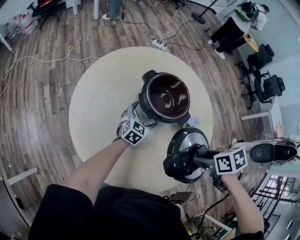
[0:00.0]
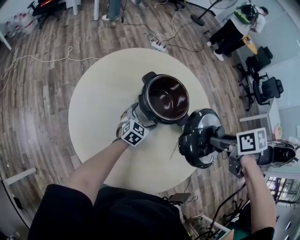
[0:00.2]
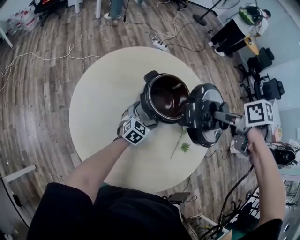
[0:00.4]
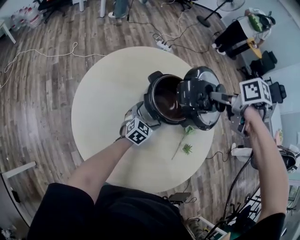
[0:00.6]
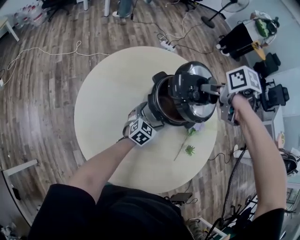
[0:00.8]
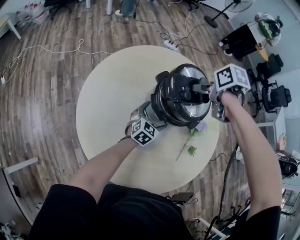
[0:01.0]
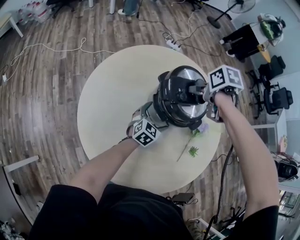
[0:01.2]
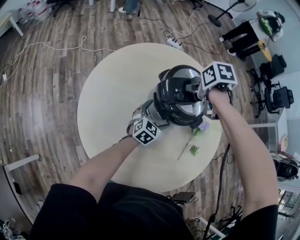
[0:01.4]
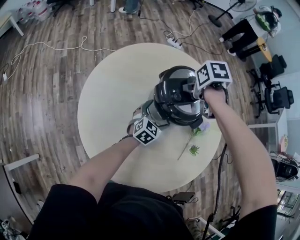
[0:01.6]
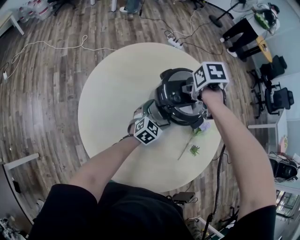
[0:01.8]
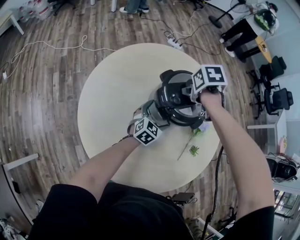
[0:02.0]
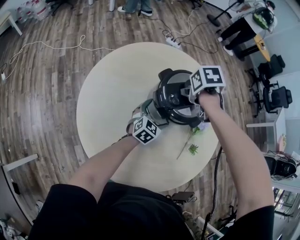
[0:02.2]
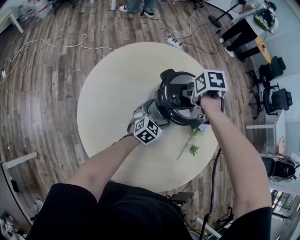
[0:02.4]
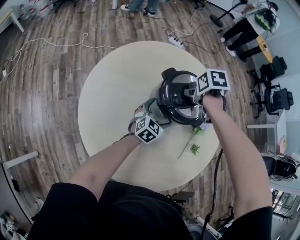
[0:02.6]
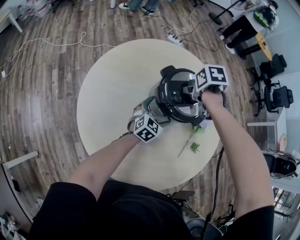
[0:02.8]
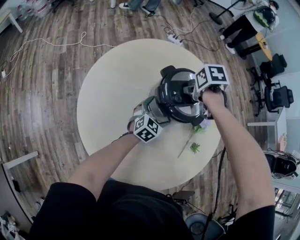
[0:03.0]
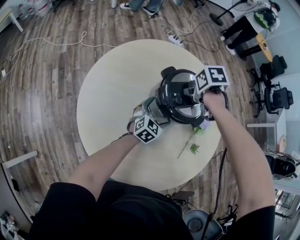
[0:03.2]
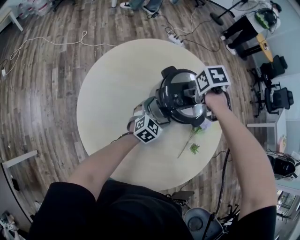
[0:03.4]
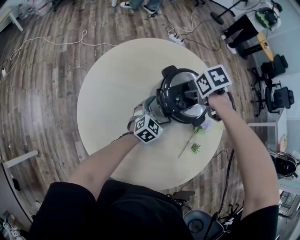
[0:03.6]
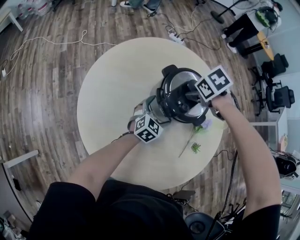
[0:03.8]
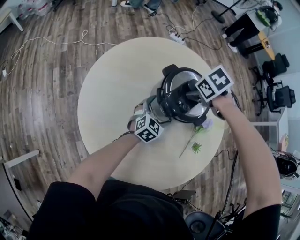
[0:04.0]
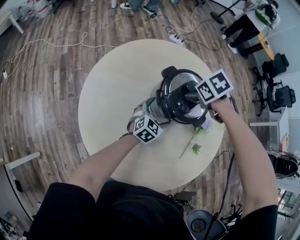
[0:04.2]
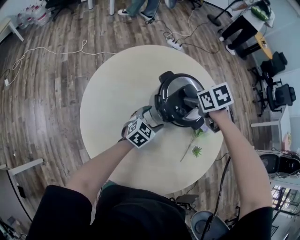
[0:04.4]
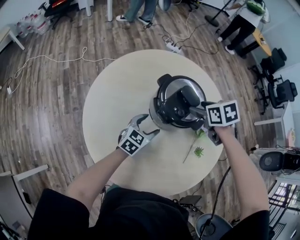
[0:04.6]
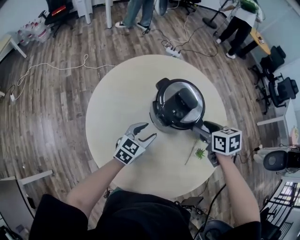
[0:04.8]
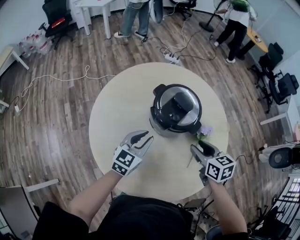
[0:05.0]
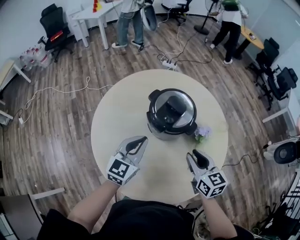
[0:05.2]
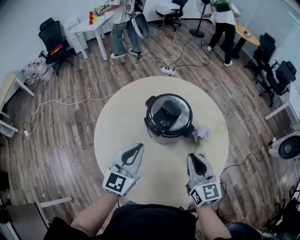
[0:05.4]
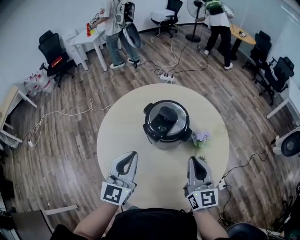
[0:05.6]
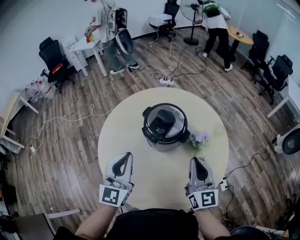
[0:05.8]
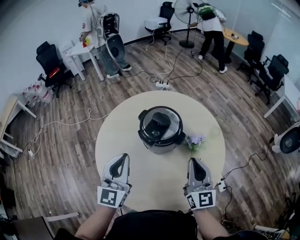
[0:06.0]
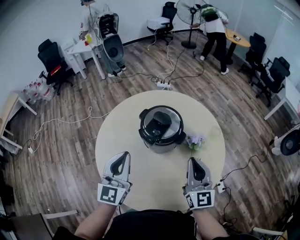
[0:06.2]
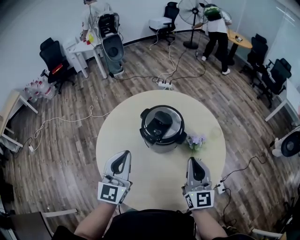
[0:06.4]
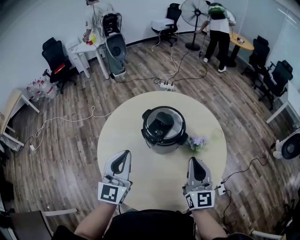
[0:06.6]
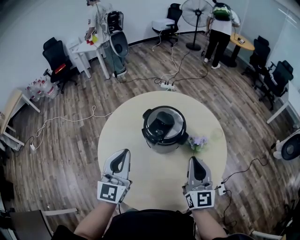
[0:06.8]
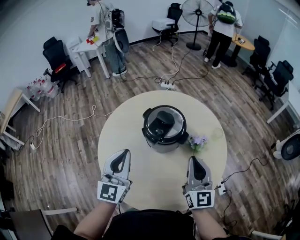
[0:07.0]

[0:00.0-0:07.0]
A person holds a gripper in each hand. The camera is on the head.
0:00.0 to 0:01.4: The right gripper reaches roughly 10 cm upward, then returns.
0:01.4 to 0:02.8: The grippers make only small movements.
0:02.8 to 0:04.2: The right gripper rotates approximately 30 degrees.
0:04.2 to 0:05.6: The left gripper travels upward by some 30 cm, rotates roughly 30 degrees, and closes up, while the right gripper ends up approximately 30 cm from where it was, angles its fingers upward, by some 80 degrees, and closes up.
0:05.6 to 0:07.0: There are only small adjustments of the grippers.

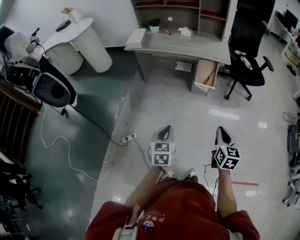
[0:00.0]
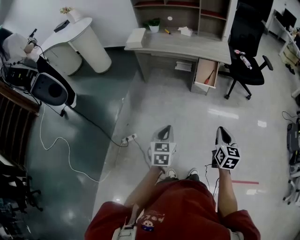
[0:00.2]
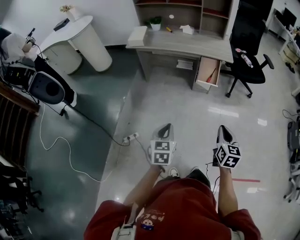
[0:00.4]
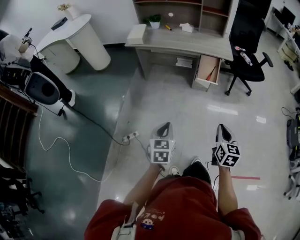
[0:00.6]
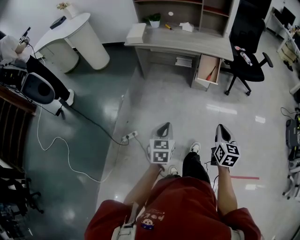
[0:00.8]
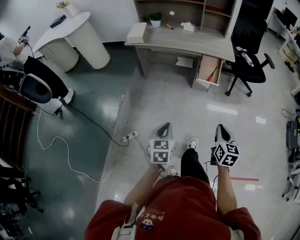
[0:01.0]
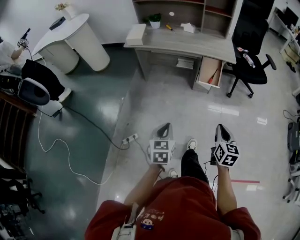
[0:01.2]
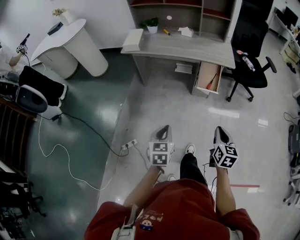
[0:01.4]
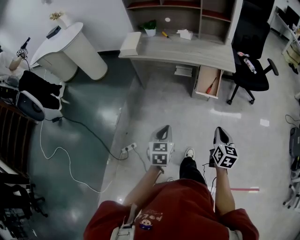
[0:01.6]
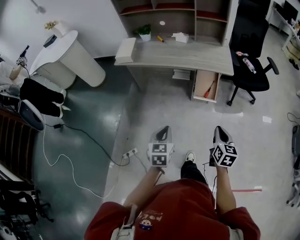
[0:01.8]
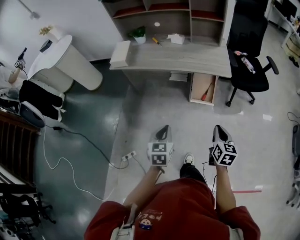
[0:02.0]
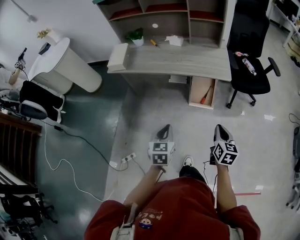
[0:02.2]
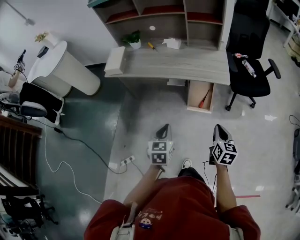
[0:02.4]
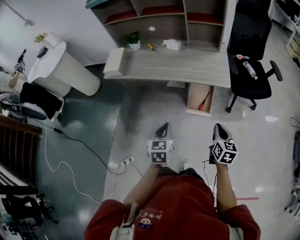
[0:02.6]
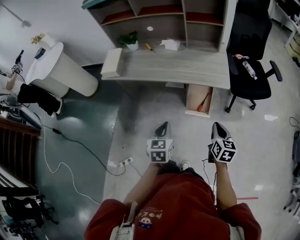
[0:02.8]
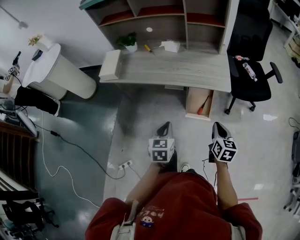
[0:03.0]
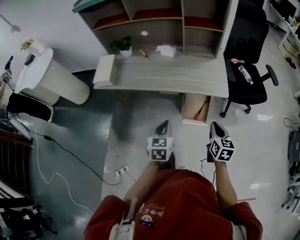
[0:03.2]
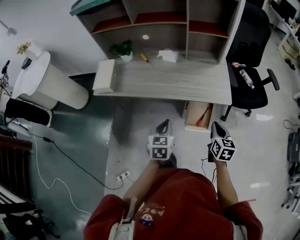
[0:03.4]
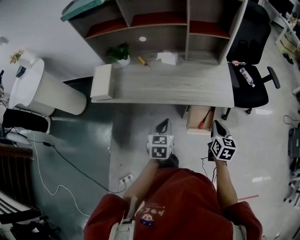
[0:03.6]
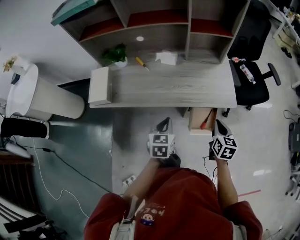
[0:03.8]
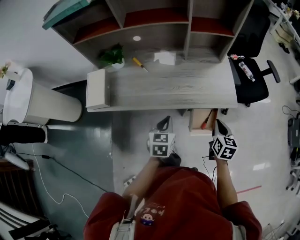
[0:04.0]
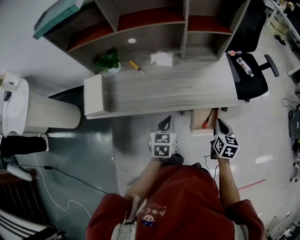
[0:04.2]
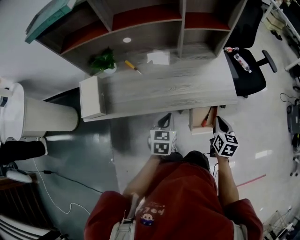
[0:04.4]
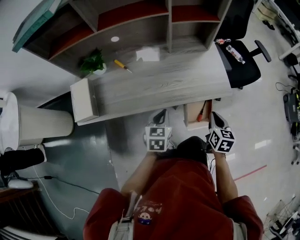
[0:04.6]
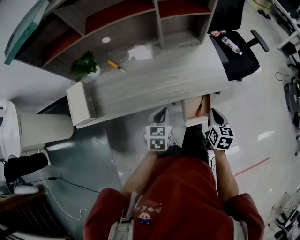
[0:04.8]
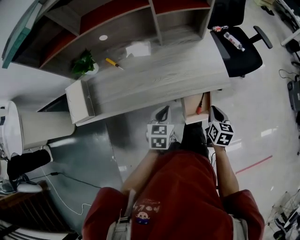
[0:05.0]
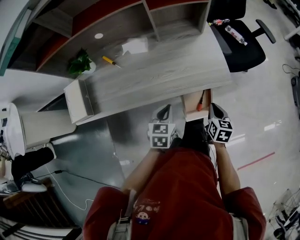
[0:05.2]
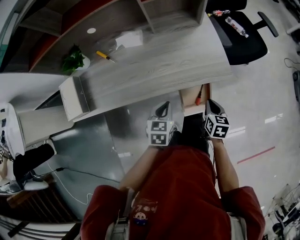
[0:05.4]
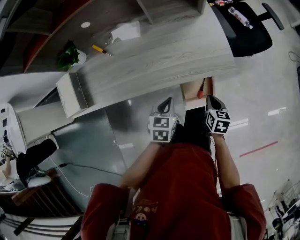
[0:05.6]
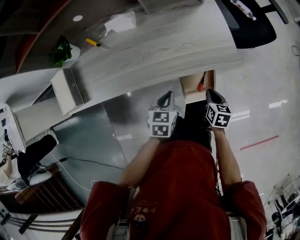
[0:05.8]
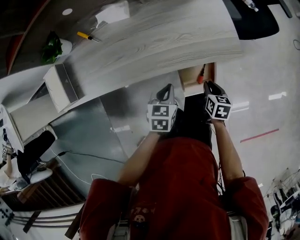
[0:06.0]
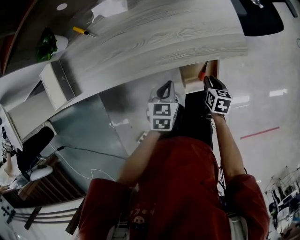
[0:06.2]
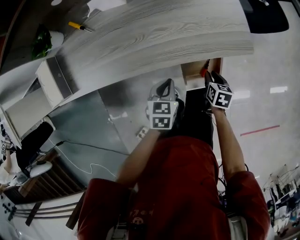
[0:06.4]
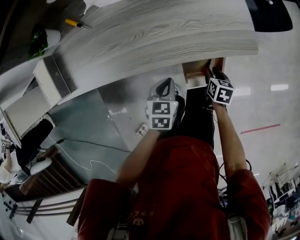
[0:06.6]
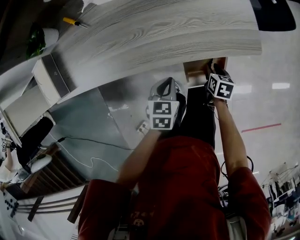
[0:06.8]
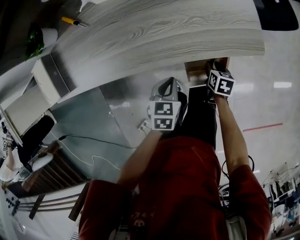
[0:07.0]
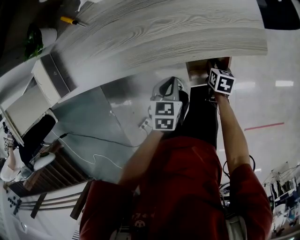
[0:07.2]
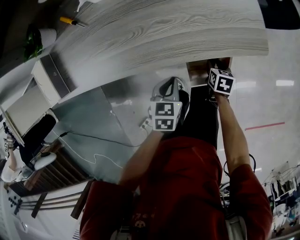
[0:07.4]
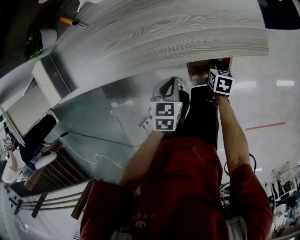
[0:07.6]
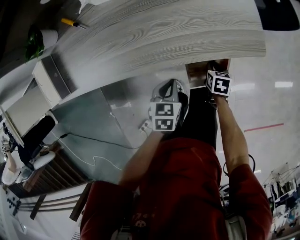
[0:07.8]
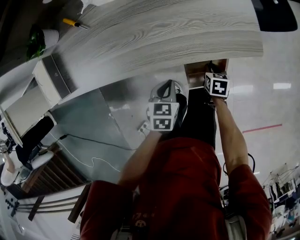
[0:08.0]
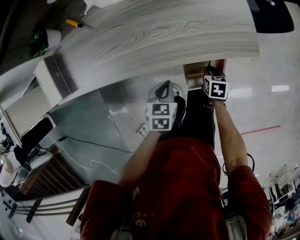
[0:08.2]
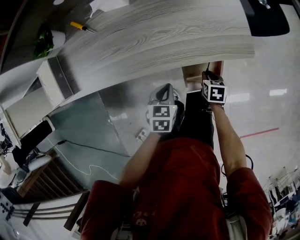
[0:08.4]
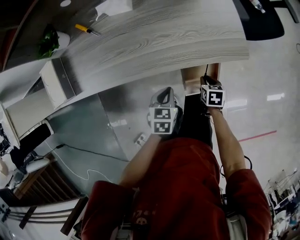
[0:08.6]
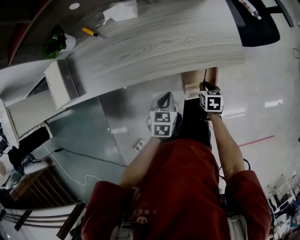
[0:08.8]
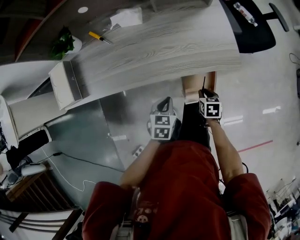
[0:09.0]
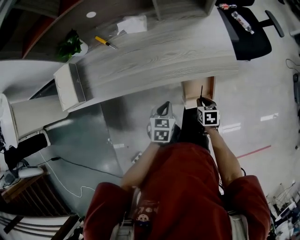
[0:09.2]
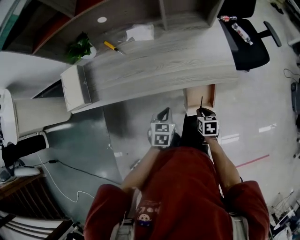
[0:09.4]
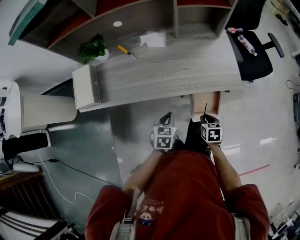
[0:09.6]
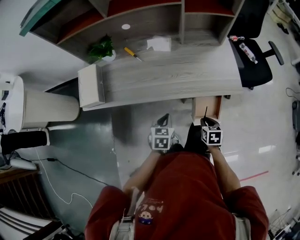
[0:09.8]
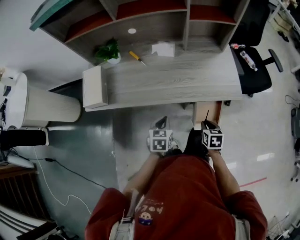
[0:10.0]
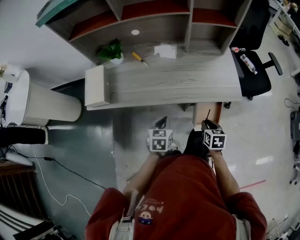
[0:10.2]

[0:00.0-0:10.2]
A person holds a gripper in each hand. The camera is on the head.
0:00.0 to 0:01.4: The right gripper goes approximately 10 cm forward. Meanwhile the left gripper shifts roughly 10 cm forward and to the left.
0:01.4 to 0:03.0: The grippers both shift forward by roughly 35 cm.
0:03.0 to 0:04.4: The right gripper moves forward and to the left, approximately 20 cm, while the left gripper travels forward by some 25 cm.
0:04.4 to 0:05.8: The right gripper is displaced downward by approximately 20 cm. Meanwhile the left gripper moves downward and to the right, about 20 cm.
0:05.8 to 0:07.2: The left gripper travels downward by roughly 10 cm, while the right gripper moves downward, approximately 15 cm, and opens.
0:07.2 to 0:08.8: The left gripper travels upward by approximately 5 cm; the right gripper is displaced upward by approximately 10 cm.
0:08.8 to 0:10.2: The left gripper is displaced to the left and upward by approximately 15 cm; the right gripper moves upward and to the left, about 20 cm.

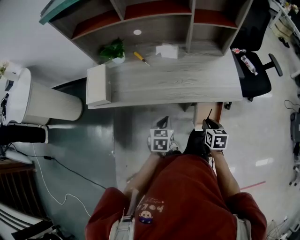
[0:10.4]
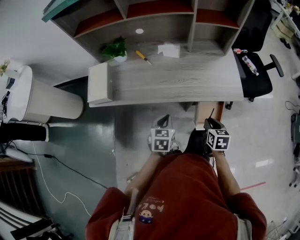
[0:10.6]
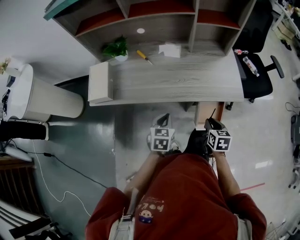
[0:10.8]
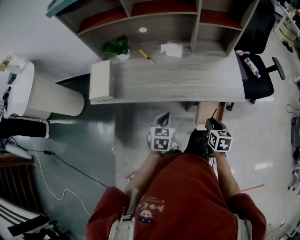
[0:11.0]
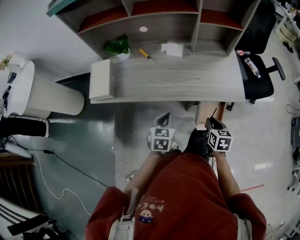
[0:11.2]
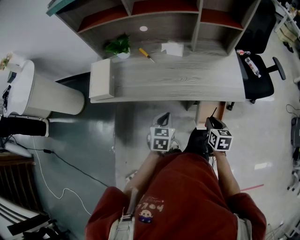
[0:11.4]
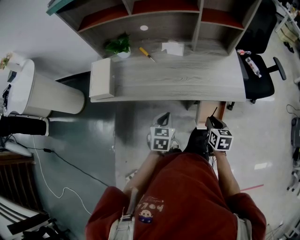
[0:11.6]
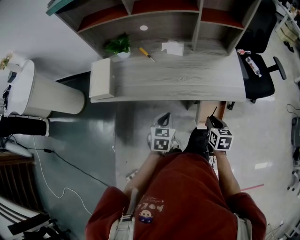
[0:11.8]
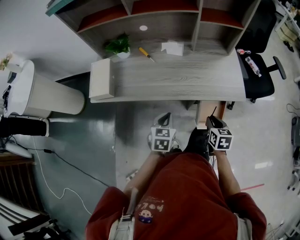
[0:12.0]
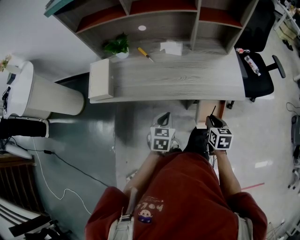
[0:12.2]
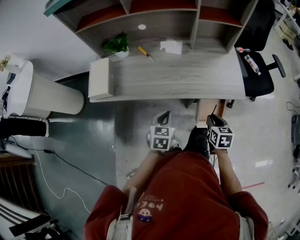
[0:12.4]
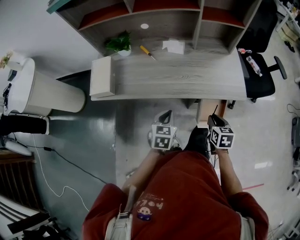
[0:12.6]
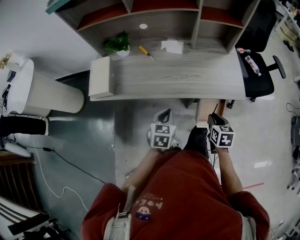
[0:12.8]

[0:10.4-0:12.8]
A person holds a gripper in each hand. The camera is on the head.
0:10.4 to 0:11.6: There are only small adjustments of the grippers.
0:11.6 to 0:12.8: Both grippers stay put.

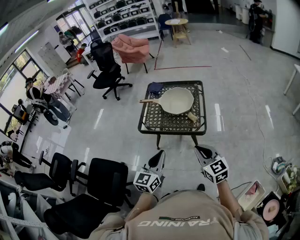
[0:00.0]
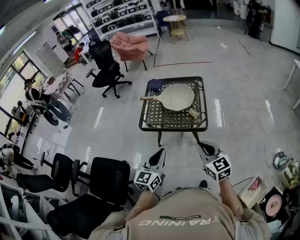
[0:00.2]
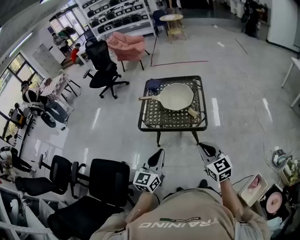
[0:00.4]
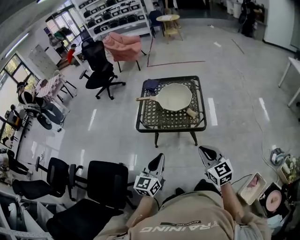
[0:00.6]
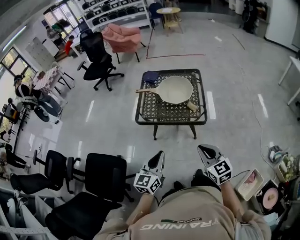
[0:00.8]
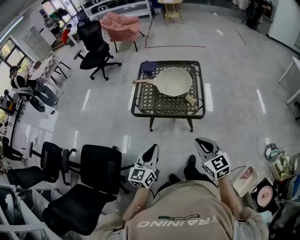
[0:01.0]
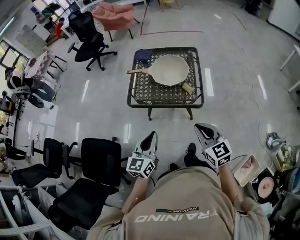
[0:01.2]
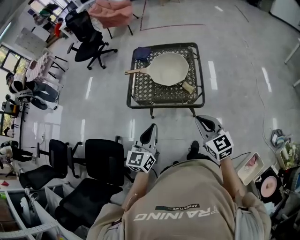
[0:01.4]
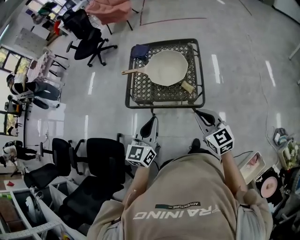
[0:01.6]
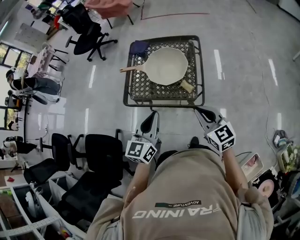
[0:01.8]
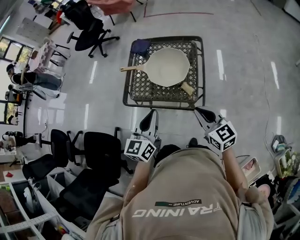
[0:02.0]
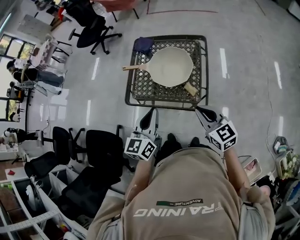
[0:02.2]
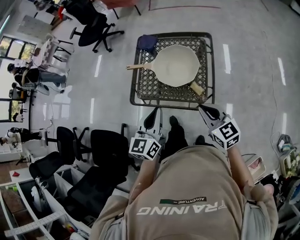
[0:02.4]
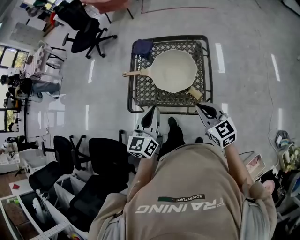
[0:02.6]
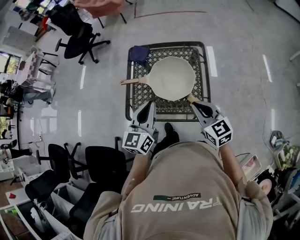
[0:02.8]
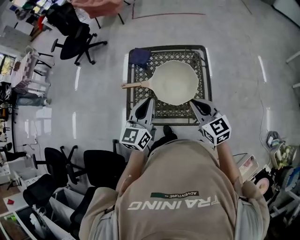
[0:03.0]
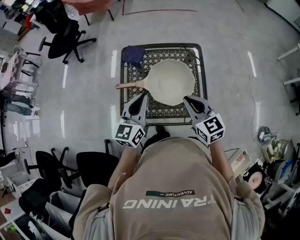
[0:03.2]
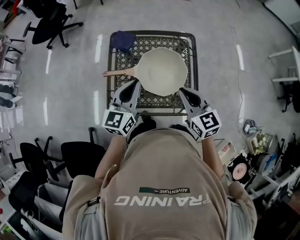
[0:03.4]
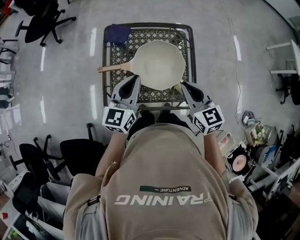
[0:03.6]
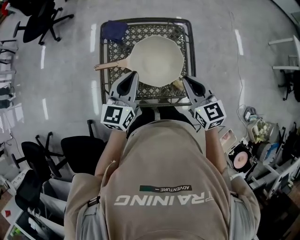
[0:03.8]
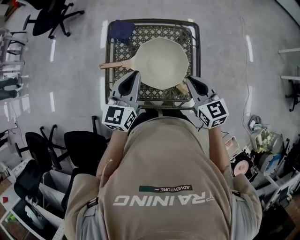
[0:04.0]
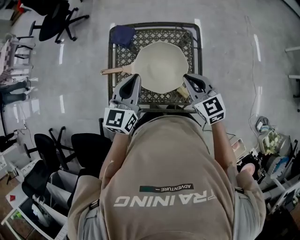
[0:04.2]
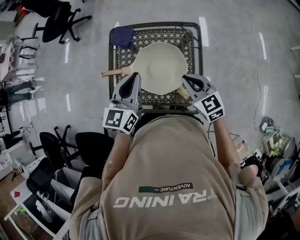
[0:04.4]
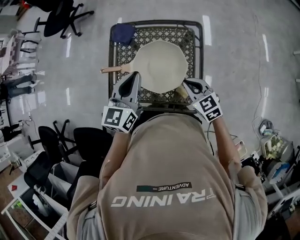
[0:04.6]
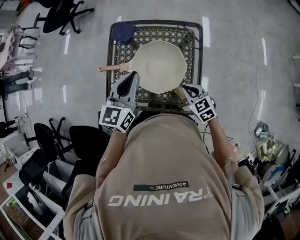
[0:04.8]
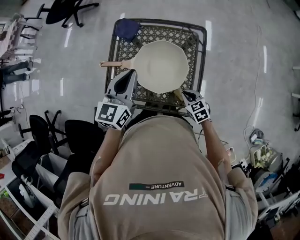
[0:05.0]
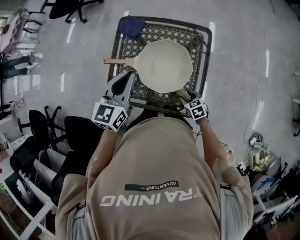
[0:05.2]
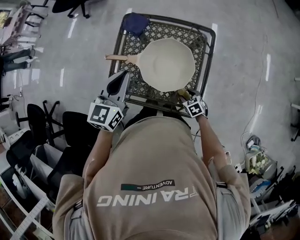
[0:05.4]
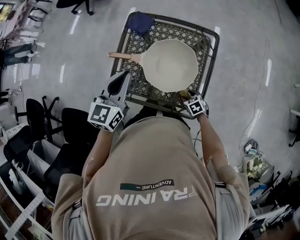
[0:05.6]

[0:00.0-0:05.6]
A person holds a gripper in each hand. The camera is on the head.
0:00.0 to 0:01.4: The two grippers go roughly 10 cm forward.
0:01.4 to 0:02.8: The two grippers go about 25 cm forward.
0:02.8 to 0:04.2: The grippers both shift forward by some 15 cm.
0:04.2 to 0:05.6: The left gripper travels to the left by some 5 cm, while the right gripper moves downward, some 30 cm, tilts its fingers some 40 degrees downward, and opens its fingers.
